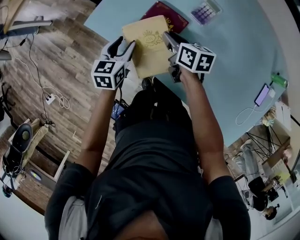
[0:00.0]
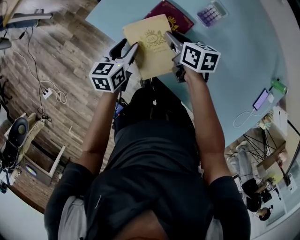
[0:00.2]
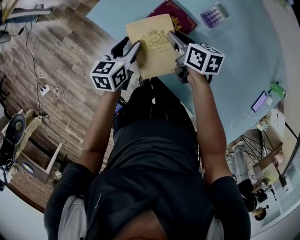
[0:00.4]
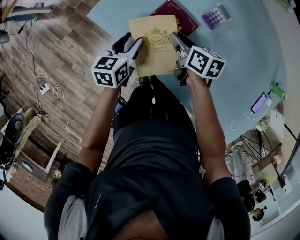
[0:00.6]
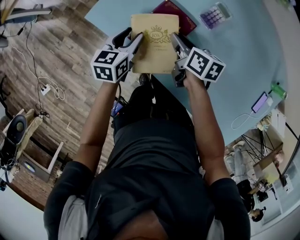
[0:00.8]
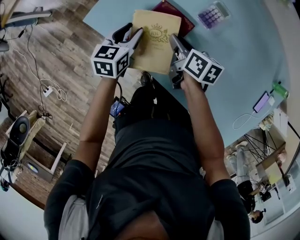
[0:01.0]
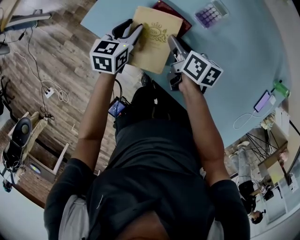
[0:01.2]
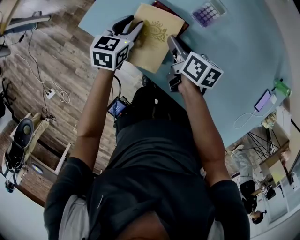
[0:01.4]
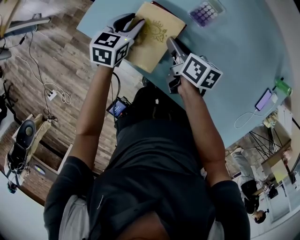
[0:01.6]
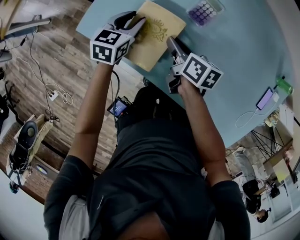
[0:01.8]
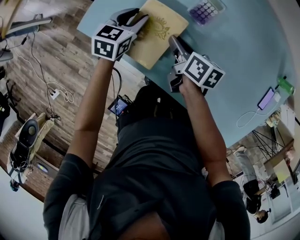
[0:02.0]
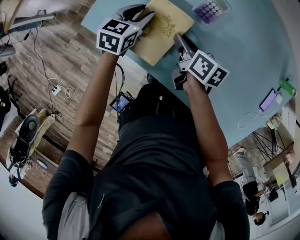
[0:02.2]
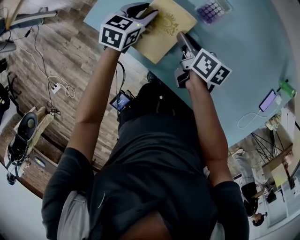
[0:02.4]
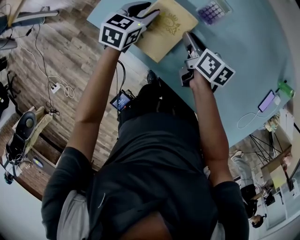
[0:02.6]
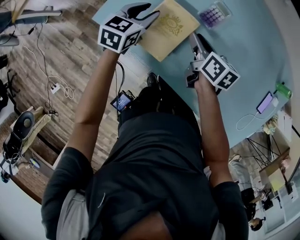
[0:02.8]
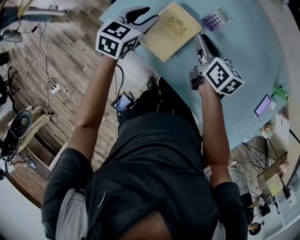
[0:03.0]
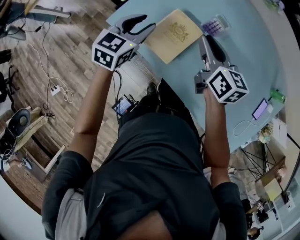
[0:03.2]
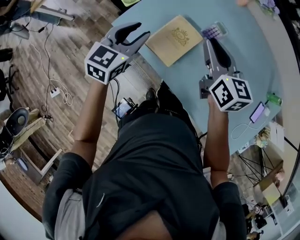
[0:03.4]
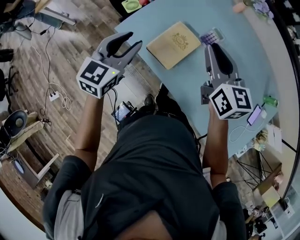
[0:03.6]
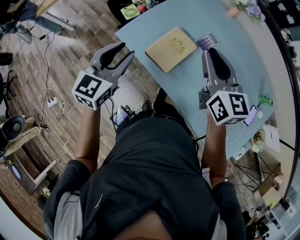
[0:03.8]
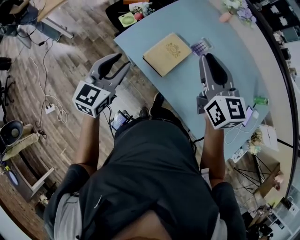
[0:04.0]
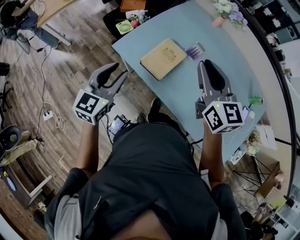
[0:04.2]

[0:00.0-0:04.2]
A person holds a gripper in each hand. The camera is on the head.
0:00.0 to 0:01.4: The left gripper is displaced forward and to the right by approximately 10 cm.
0:01.4 to 0:02.8: Both grippers move upward, roughly 5 cm.
0:02.8 to 0:04.2: The left gripper shifts roughly 35 cm backward and upward, and changes its angle by some 20 degrees. Meanwhile the right gripper shifts about 35 cm upward and backward, and rotates around the line of its fingers by roughly 40 degrees, counterclockwise from behind.

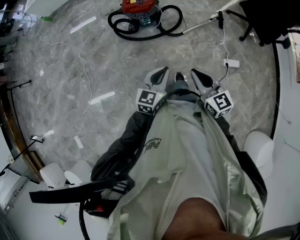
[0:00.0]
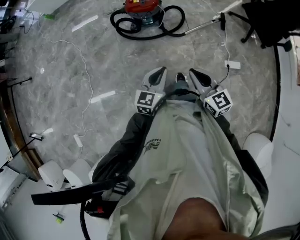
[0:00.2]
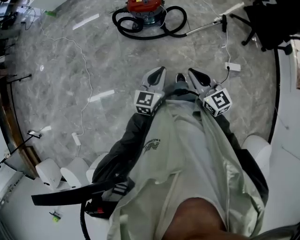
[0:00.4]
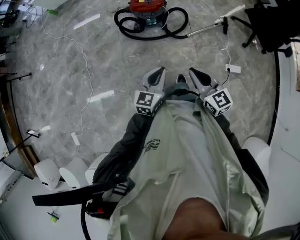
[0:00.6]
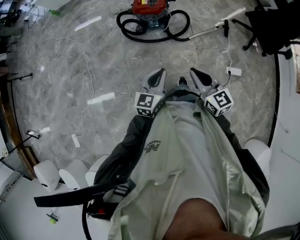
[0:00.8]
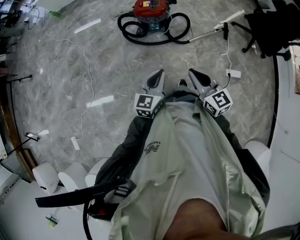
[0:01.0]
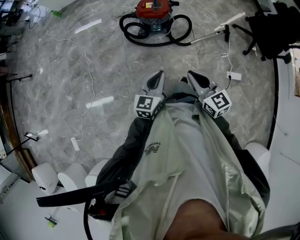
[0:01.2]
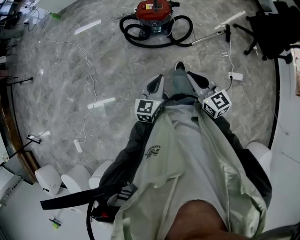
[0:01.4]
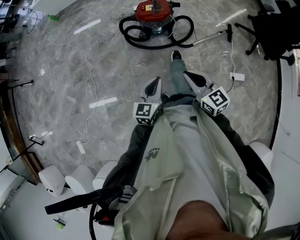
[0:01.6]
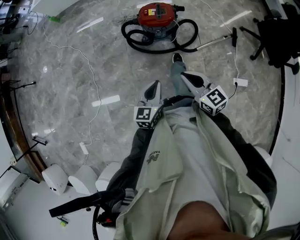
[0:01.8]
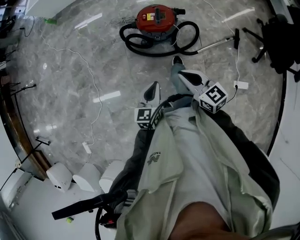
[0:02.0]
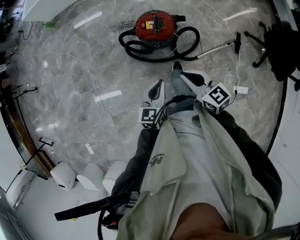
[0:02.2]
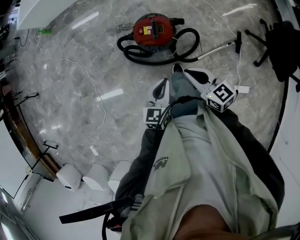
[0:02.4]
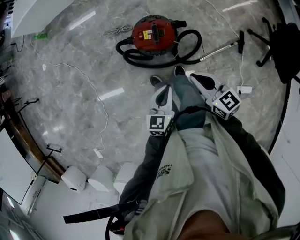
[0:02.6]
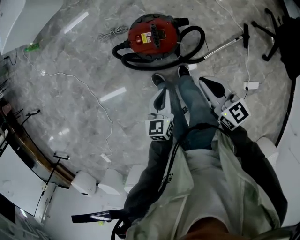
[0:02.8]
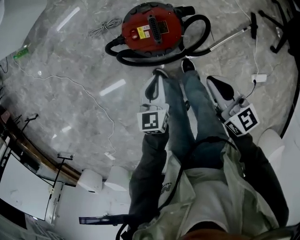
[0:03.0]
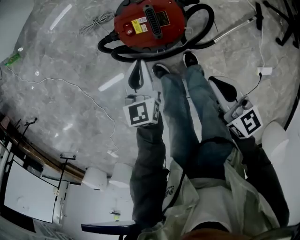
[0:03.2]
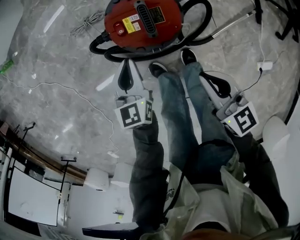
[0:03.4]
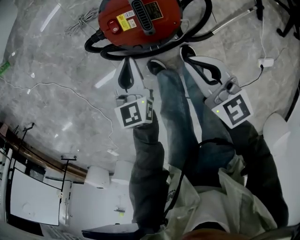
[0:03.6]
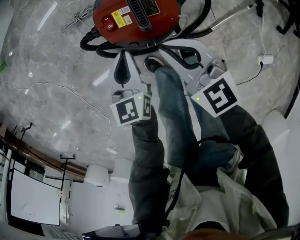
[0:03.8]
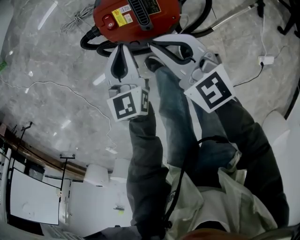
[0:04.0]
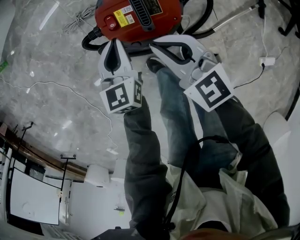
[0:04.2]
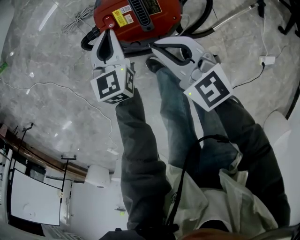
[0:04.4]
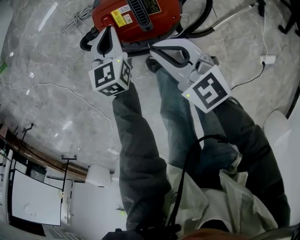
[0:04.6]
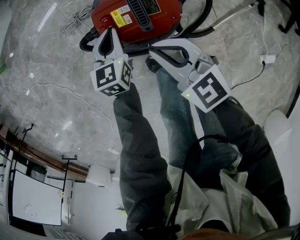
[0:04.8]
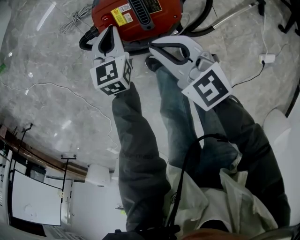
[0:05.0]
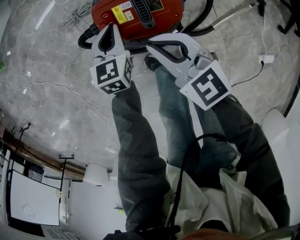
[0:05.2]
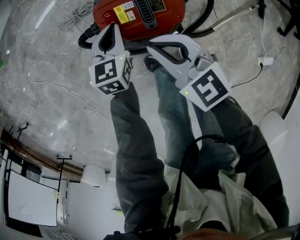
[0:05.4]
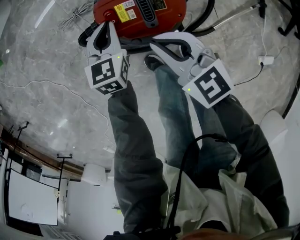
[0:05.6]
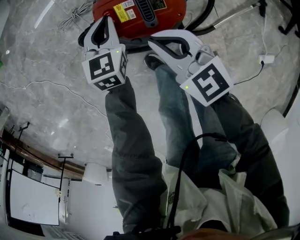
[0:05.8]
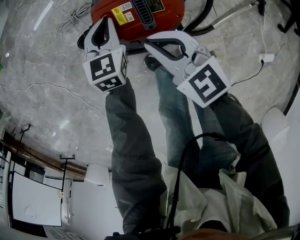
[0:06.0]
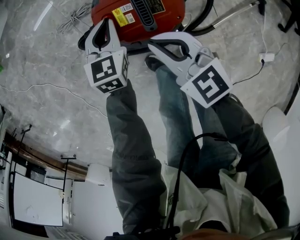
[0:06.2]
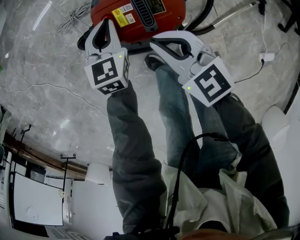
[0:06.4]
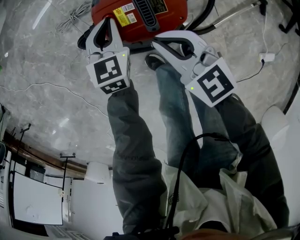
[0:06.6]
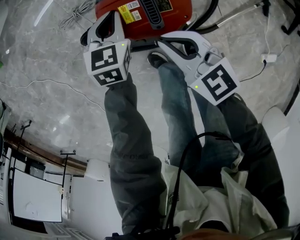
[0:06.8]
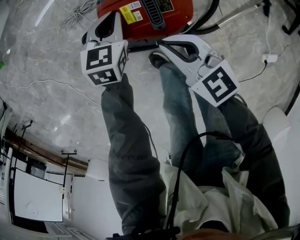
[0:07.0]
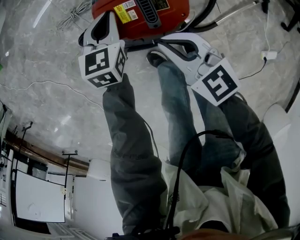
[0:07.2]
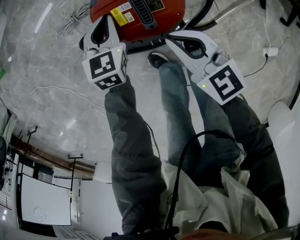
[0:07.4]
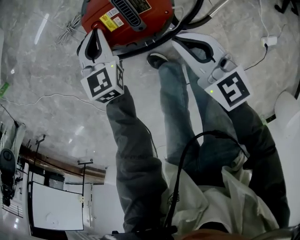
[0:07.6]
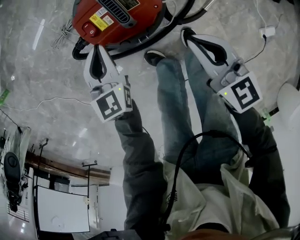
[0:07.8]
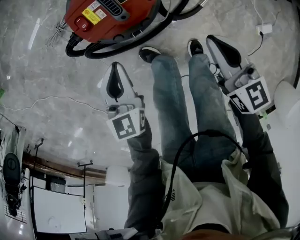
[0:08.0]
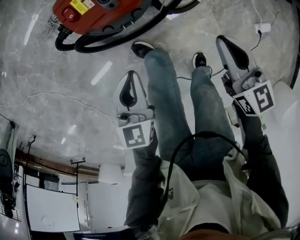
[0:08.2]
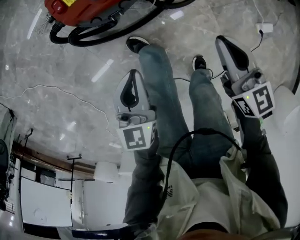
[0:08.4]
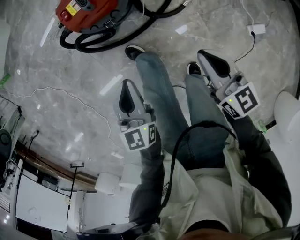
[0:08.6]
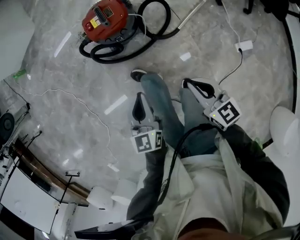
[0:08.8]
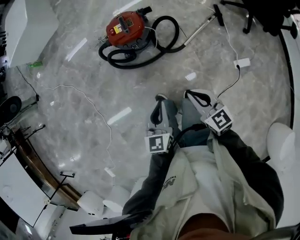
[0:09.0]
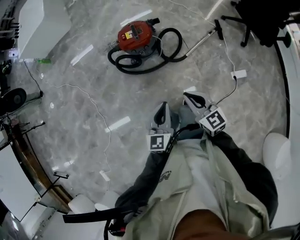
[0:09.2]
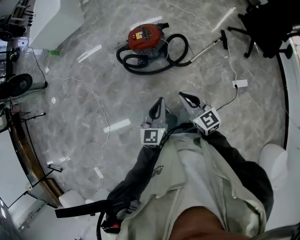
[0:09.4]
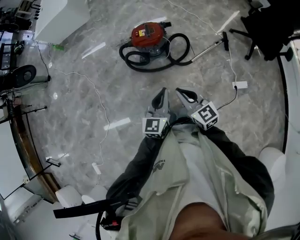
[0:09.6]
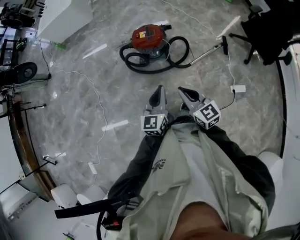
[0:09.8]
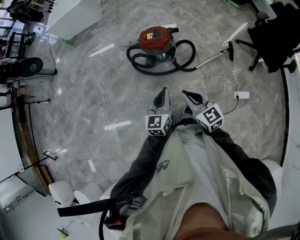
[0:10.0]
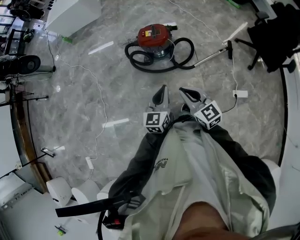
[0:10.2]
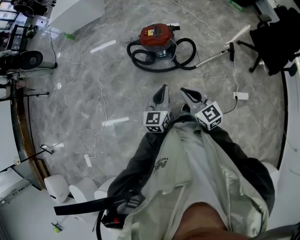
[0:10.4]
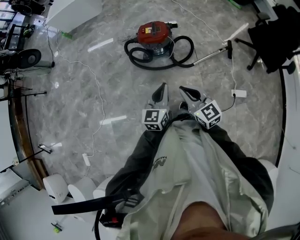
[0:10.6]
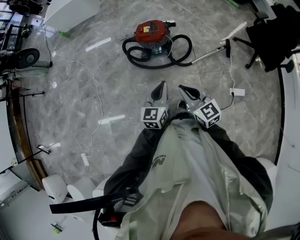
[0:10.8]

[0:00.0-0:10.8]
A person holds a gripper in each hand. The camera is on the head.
0:00.0 to 0:01.6: Both grippers move to the left and forward, some 15 cm.
0:01.6 to 0:03.0: The pair of grippers is taken forward, roughly 40 cm. The two grippers go roughly 20 cm downward. The right gripper swivels roughly 20 degrees.
0:03.0 to 0:04.6: The right gripper heads downward, to the left and forward, covering roughly 20 cm, and changes its angle by about 20 degrees; the left gripper shifts approximately 25 cm downward and forward.
0:04.6 to 0:06.2: There are only small adjustments of the grippers.
0:06.2 to 0:07.8: The left gripper is displaced backward by about 5 cm. Meanwhile the right gripper travels to the right and backward by approximately 15 cm, and changes its angle by roughly 30 degrees.
0:07.8 to 0:09.2: The two grippers go some 50 cm backward and upward. The left gripper turns by about 20 degrees.
0:09.2 to 0:10.8: The right gripper shifts some 10 cm upward and backward.

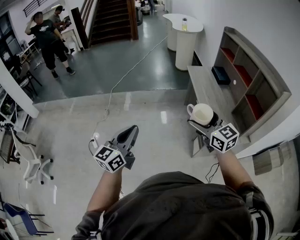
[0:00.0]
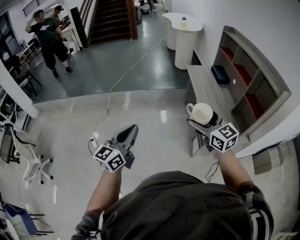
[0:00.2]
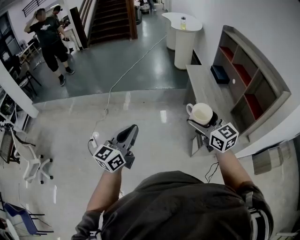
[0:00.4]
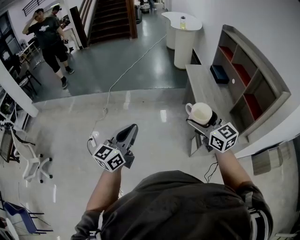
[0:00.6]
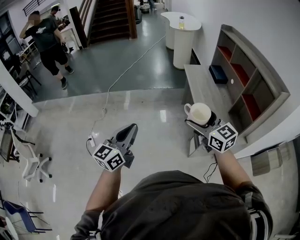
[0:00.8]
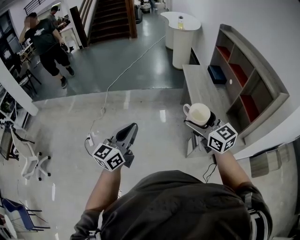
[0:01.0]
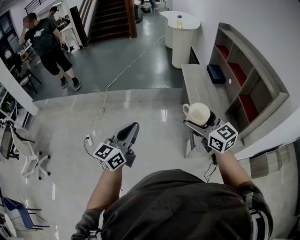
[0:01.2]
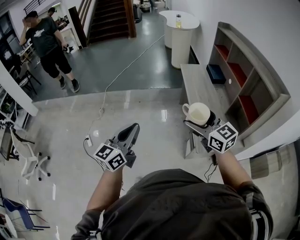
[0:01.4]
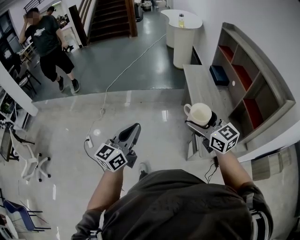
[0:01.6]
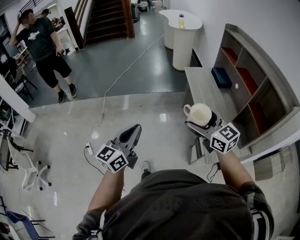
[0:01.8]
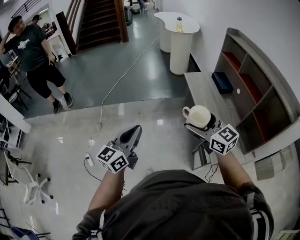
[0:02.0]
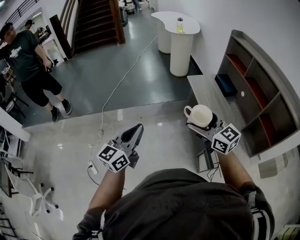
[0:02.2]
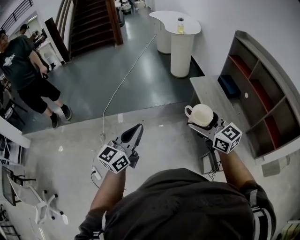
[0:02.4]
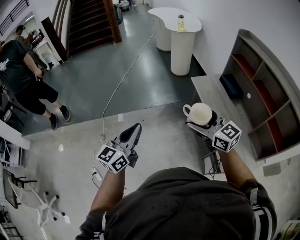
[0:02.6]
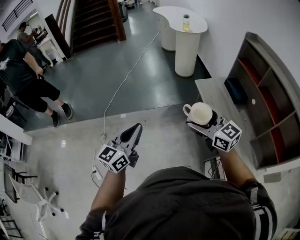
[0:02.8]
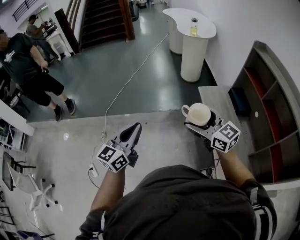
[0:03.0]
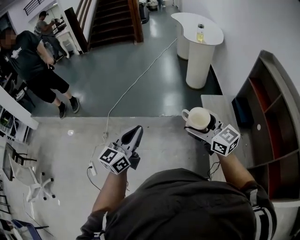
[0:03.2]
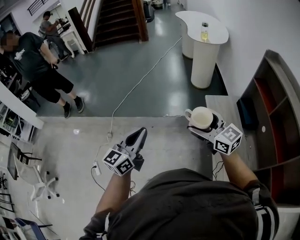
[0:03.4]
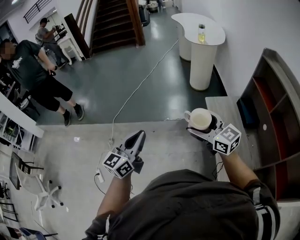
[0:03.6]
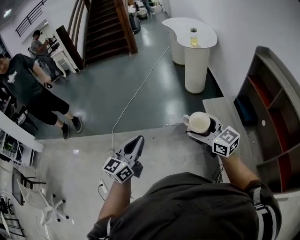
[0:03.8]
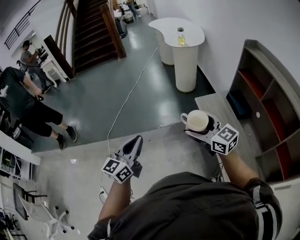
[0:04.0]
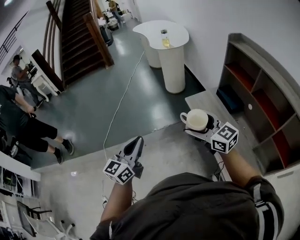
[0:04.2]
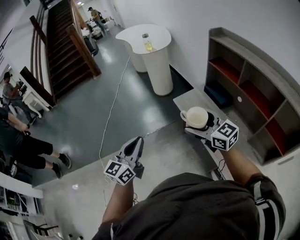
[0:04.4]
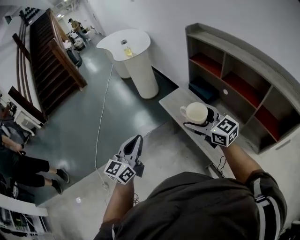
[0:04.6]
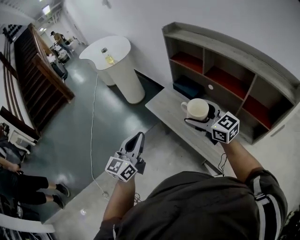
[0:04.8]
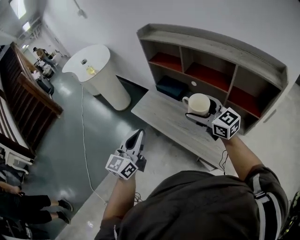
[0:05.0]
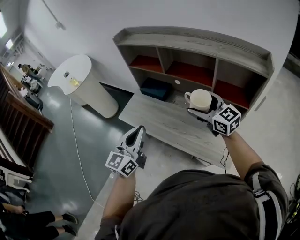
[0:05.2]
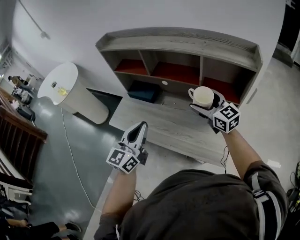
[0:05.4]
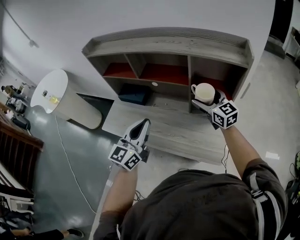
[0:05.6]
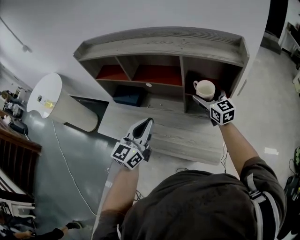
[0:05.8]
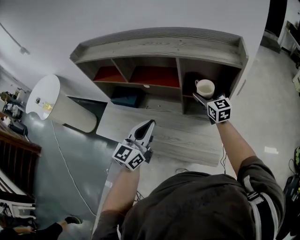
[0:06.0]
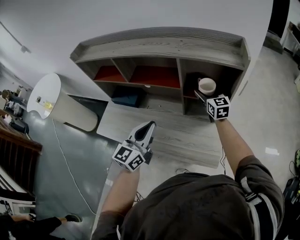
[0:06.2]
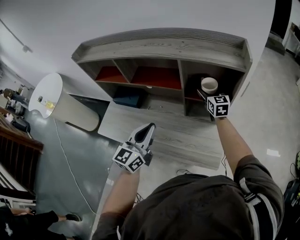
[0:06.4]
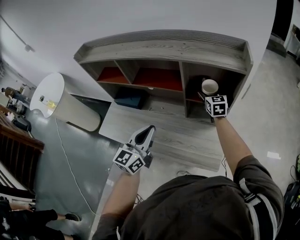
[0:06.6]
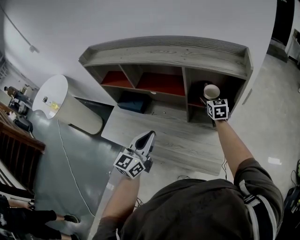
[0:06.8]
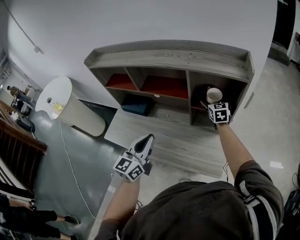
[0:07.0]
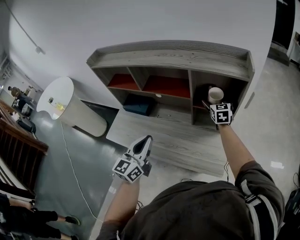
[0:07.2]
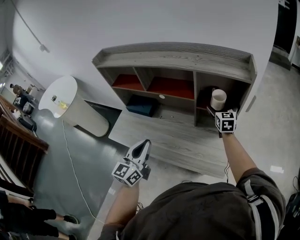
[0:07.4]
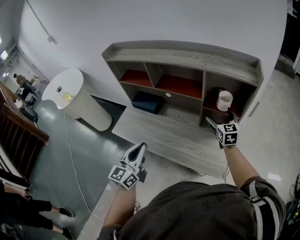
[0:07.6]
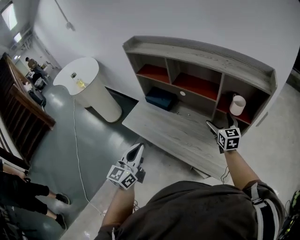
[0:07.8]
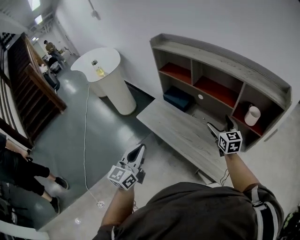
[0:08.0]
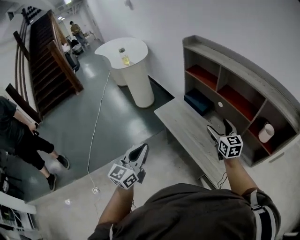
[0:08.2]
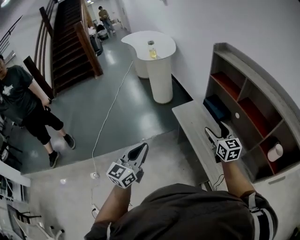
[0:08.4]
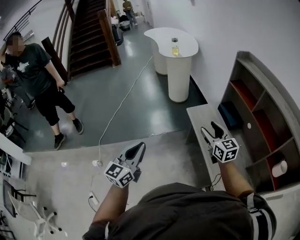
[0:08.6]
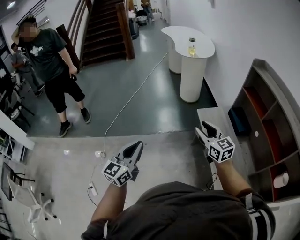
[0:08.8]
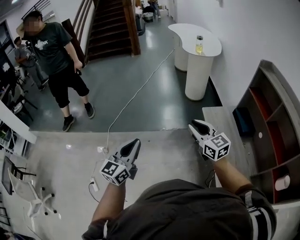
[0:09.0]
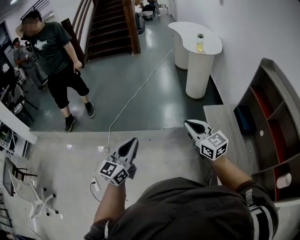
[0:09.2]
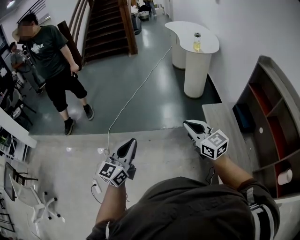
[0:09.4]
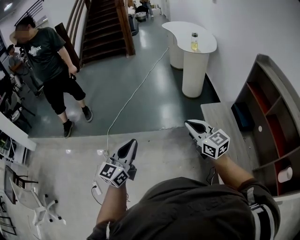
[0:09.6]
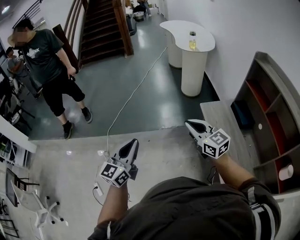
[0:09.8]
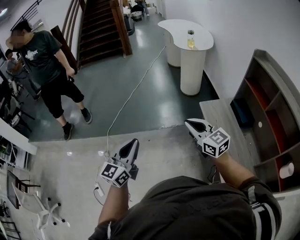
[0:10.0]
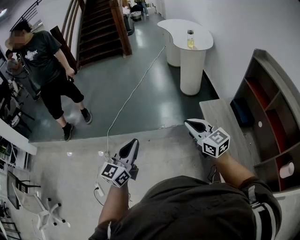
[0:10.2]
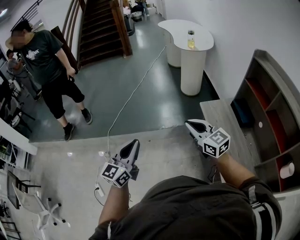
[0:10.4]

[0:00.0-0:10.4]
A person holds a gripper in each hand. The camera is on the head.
0:00.0 to 0:01.4: The two grippers go some 10 cm to the right.
0:01.4 to 0:03.0: The two grippers travel together, forward, roughly 50 cm.
0:03.0 to 0:04.4: The left gripper goes left and right, roughly 10 cm each way, reversing 2 times. Meanwhile the right gripper goes roughly 10 cm to the right.
0:04.4 to 0:06.0: The pair of grippers is taken approximately 50 cm. The left gripper rotates approximately 50 degrees; the right gripper turns by roughly 70 degrees.
0:06.0 to 0:07.4: The left gripper heads to the left and backward, covering approximately 10 cm.
0:07.4 to 0:09.0: The two grippers travel together, approximately 60 cm. The left gripper swivels about 60 degrees; the right gripper swivels approximately 100 degrees, and closes.
0:09.0 to 0:10.4: There are only small adjustments of the grippers.
